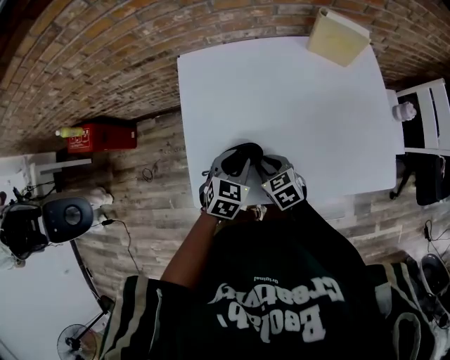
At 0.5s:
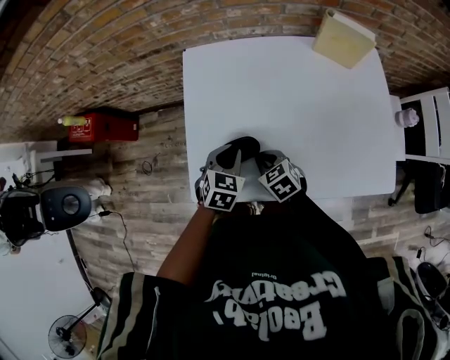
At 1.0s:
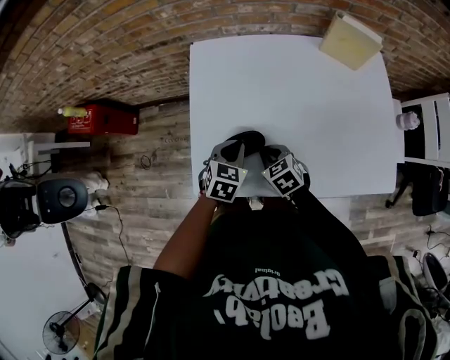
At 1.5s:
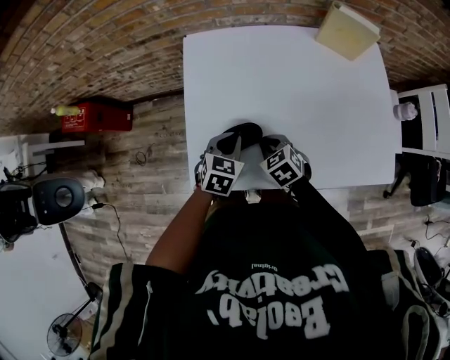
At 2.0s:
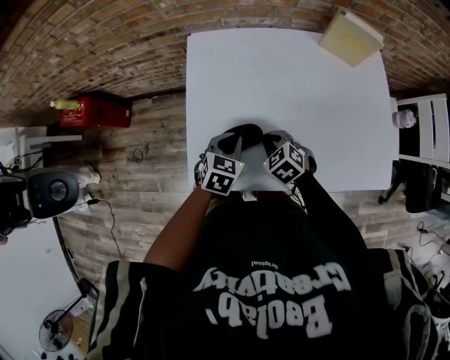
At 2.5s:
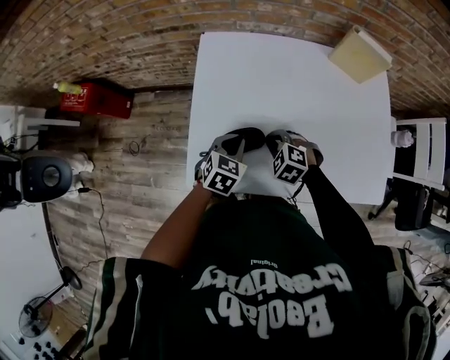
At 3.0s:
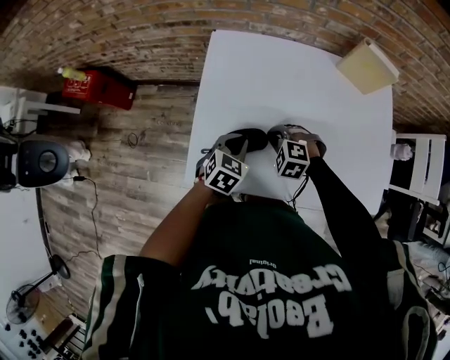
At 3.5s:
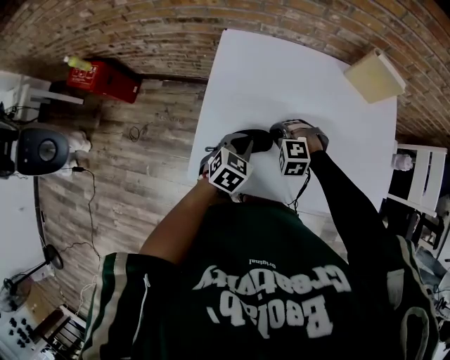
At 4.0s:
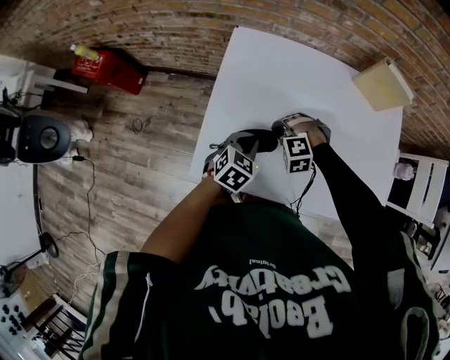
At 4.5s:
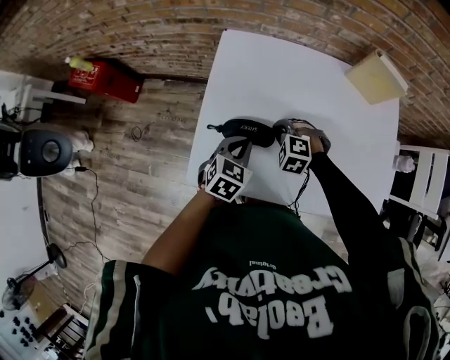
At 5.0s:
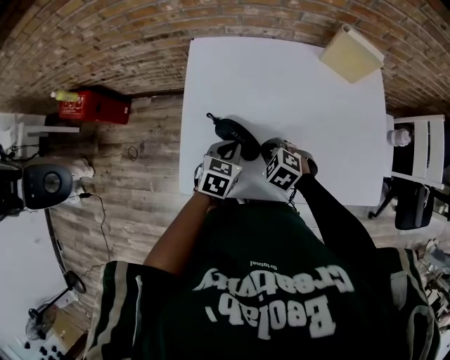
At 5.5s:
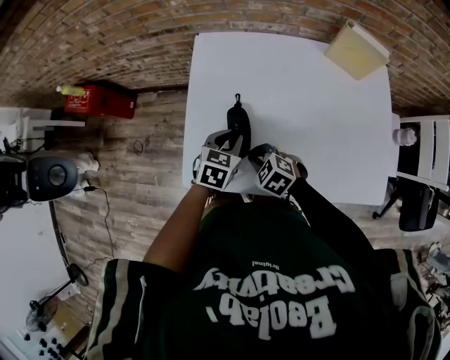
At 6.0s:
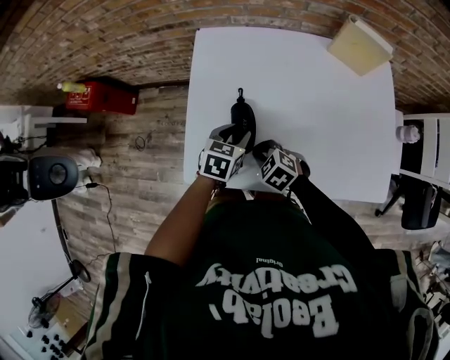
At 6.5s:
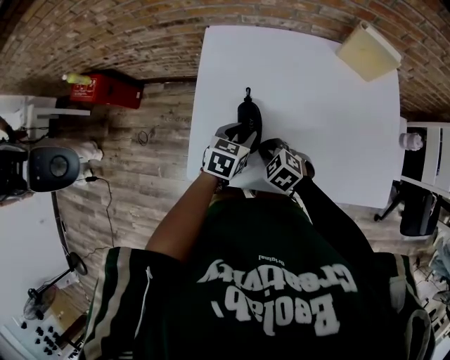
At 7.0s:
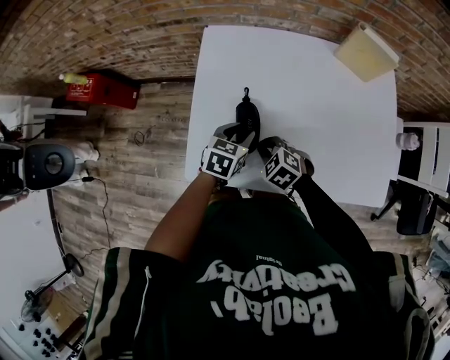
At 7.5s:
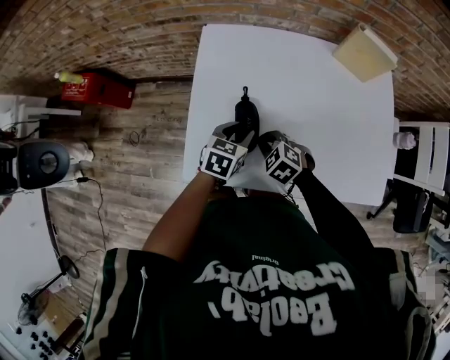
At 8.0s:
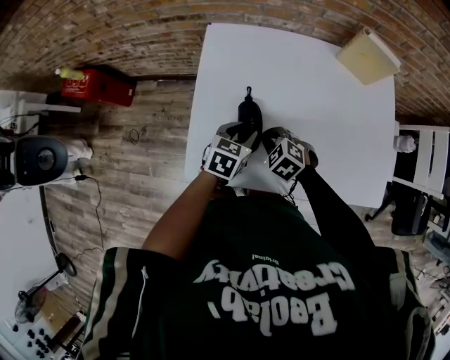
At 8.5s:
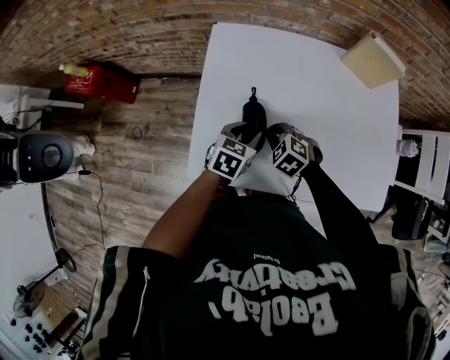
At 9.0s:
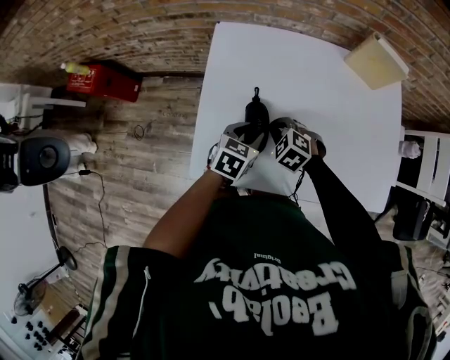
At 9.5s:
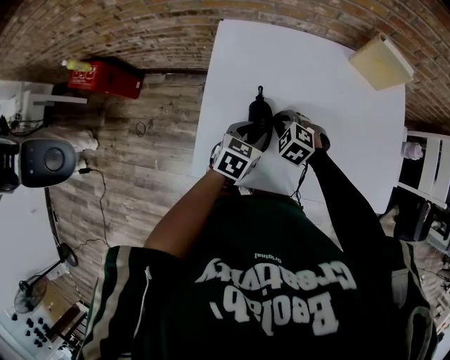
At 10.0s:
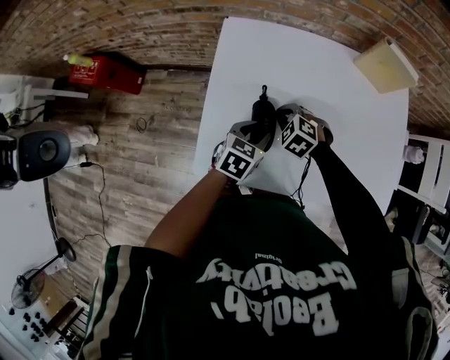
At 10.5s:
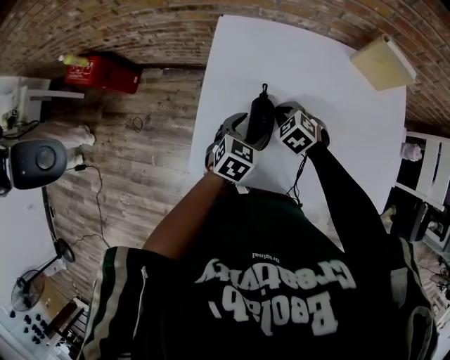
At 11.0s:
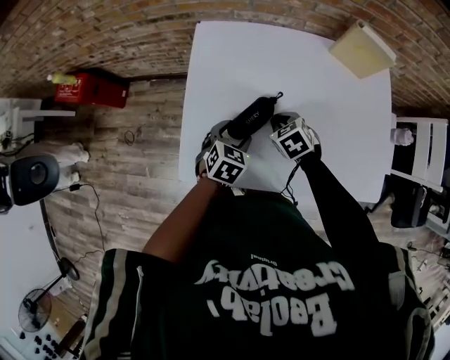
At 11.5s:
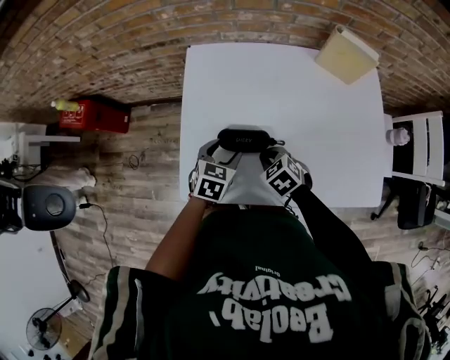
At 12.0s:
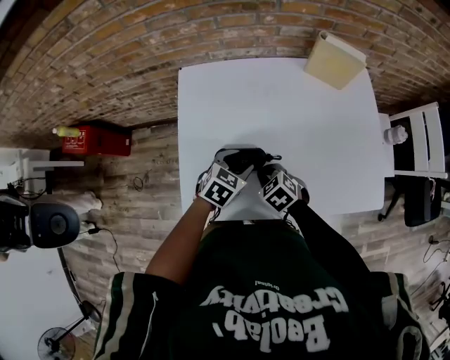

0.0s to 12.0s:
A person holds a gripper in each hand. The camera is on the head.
0.0s to 2.0s: The left gripper closes its fingers. The right gripper swivels roughly 30 degrees.
2.0s to 4.0s: The right gripper shifts roughly 5 cm forward, and twists approximately 70 degrees counterclockwise, seen from behind.
4.0s to 6.0s: The right gripper moves backward, about 10 cm, and rotates around the line of its fingers by roughly 60 degrees, clockwise from behind. Meanwhile the left gripper opens up.
6.0s to 8.0s: There are only small adjustments of the grippers.
8.0s to 10.0s: The right gripper heads forward, covering about 10 cm.
10.0s to 12.0s: The right gripper goes some 10 cm backward, and rotates roughly 30 degrees.

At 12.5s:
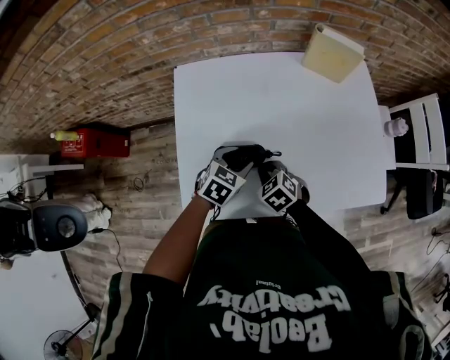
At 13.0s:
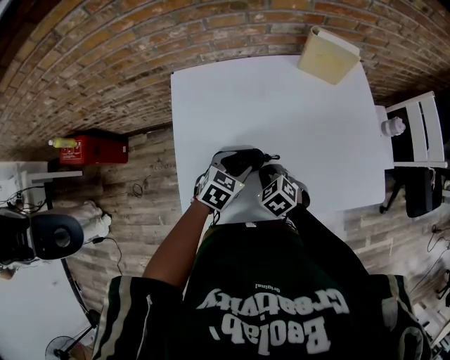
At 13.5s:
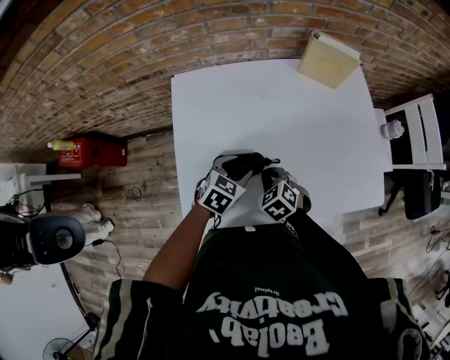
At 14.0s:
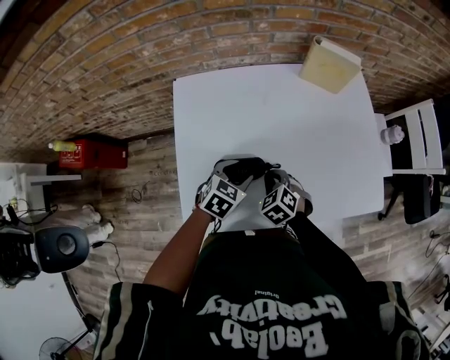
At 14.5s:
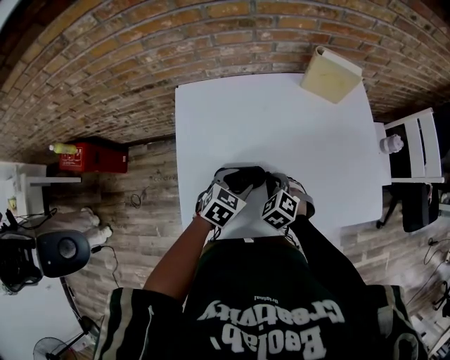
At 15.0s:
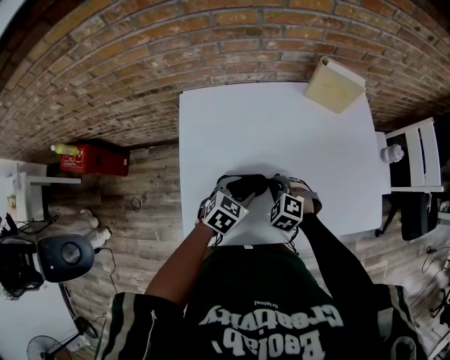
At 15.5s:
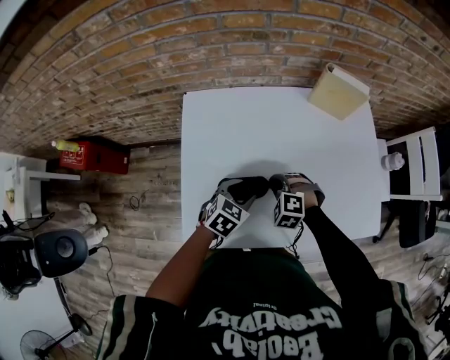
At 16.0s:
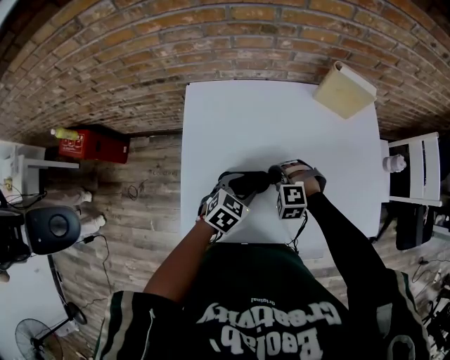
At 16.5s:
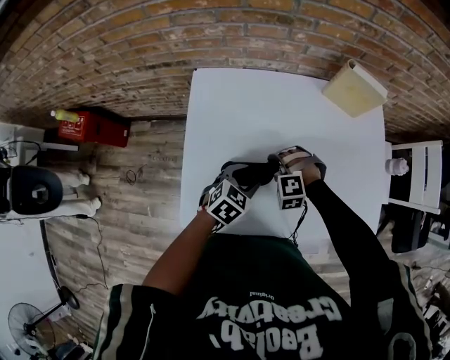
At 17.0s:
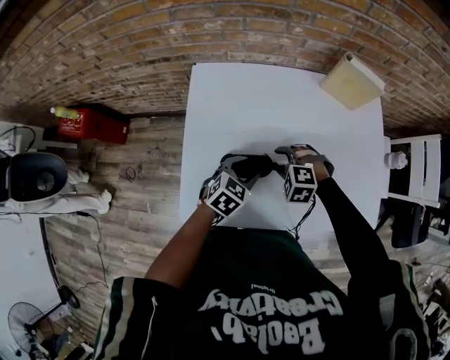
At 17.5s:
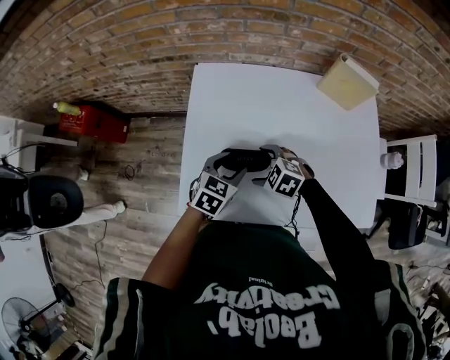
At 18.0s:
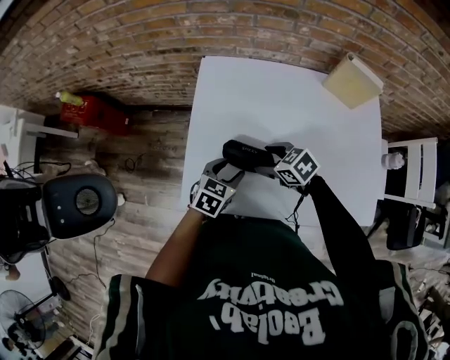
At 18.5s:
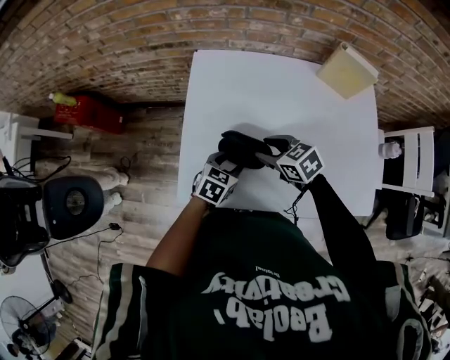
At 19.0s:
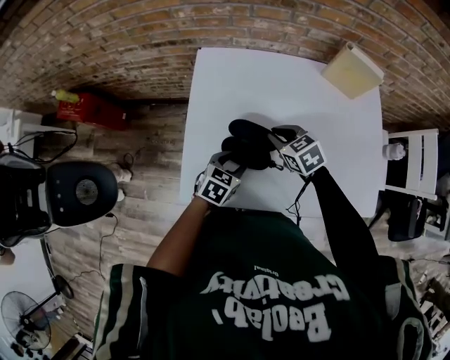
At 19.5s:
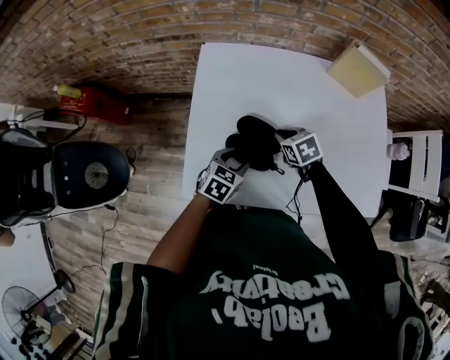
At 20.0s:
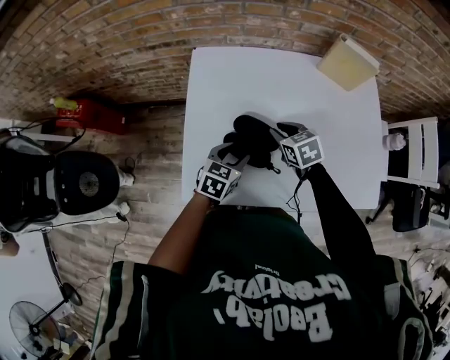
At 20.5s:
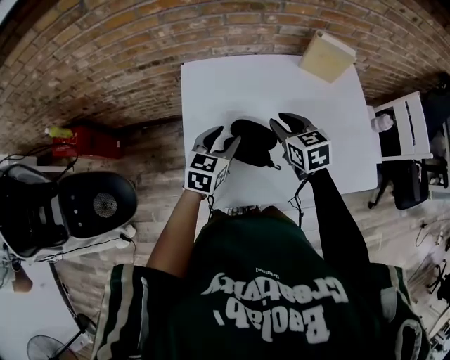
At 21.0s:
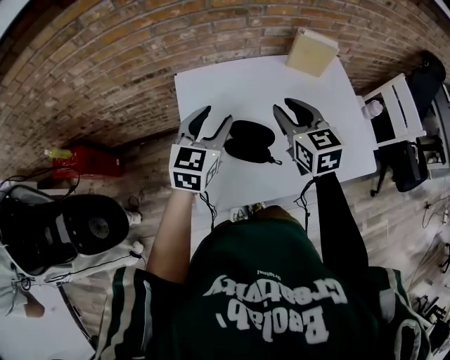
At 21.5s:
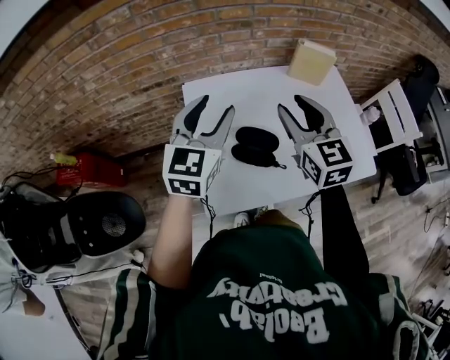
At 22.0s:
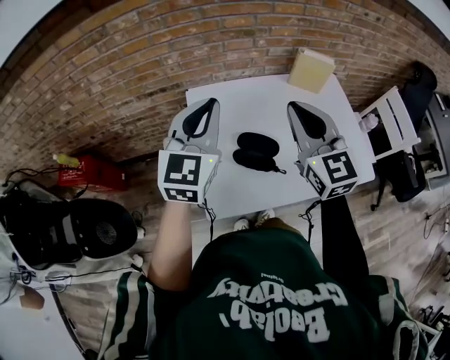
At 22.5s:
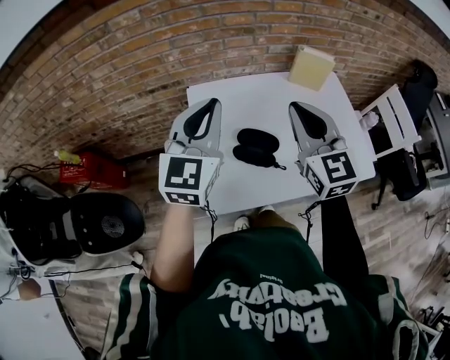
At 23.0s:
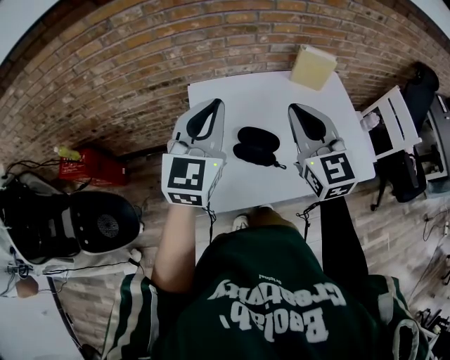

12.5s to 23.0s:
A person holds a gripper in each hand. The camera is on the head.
12.5s to 14.5s: The grippers make only small movements.
14.5s to 16.5s: The right gripper shifts by approximately 5 cm, and rotates around the line of its fingers by roughly 50 degrees, counterclockwise from behind.
16.5s to 19.0s: The right gripper is displaced upward by approximately 5 cm, twists some 70 degrees clockwise, seen from behind, and opens, then closes again. Meanwhile the left gripper shifts by approximately 5 cm.
19.0s to 21.0s: The two grippers go approximately 20 cm upward. The left gripper swivels some 30 degrees. Meanwhile the right gripper rotates roughly 40 degrees.
21.0s to 23.0s: Both grippers travel together upward and backward, roughly 15 cm. The right gripper rotates some 20 degrees, and closes up. The left gripper closes its fingers.

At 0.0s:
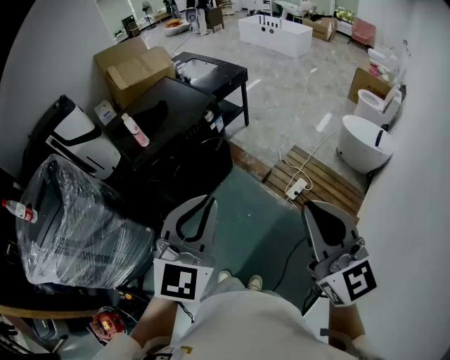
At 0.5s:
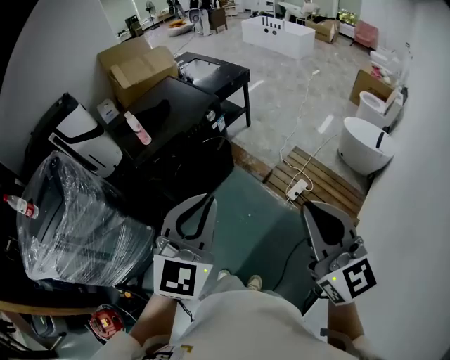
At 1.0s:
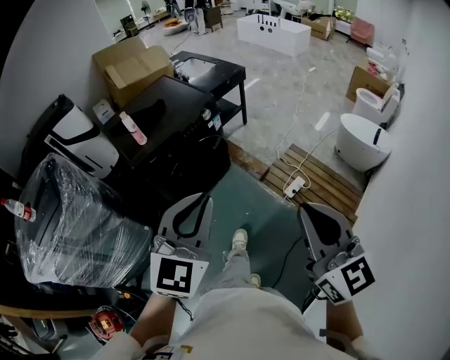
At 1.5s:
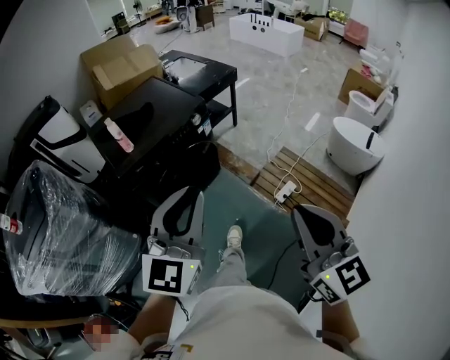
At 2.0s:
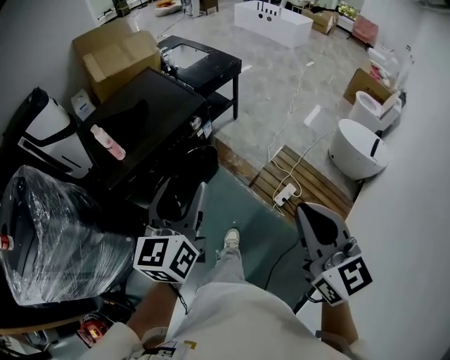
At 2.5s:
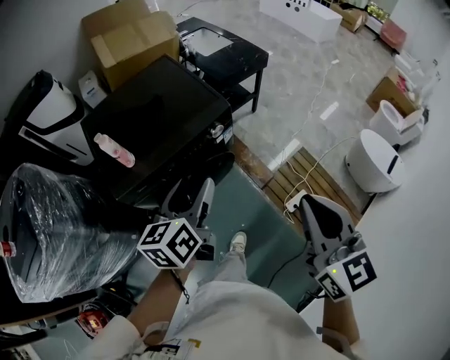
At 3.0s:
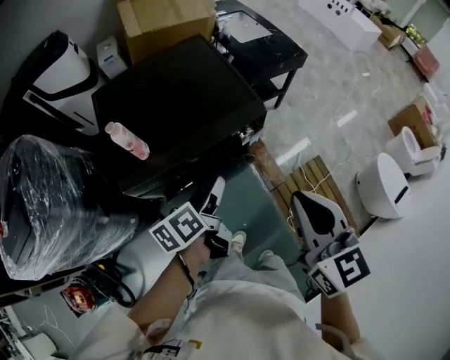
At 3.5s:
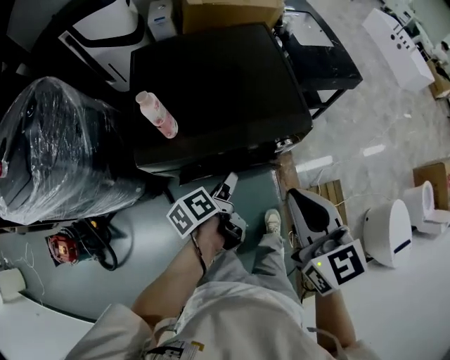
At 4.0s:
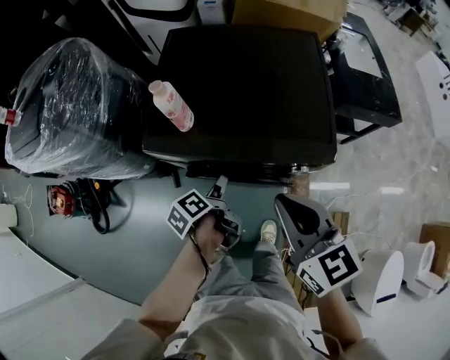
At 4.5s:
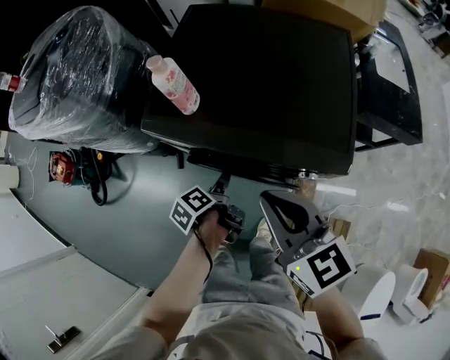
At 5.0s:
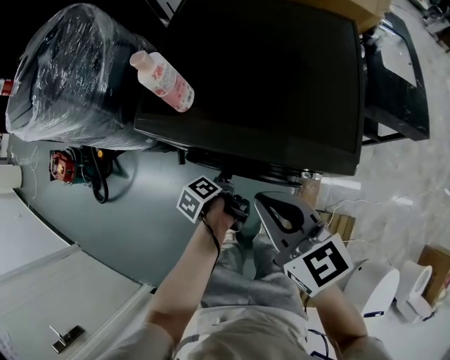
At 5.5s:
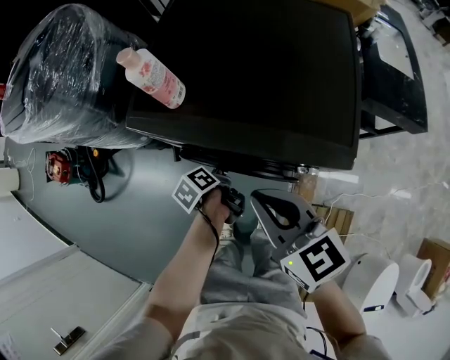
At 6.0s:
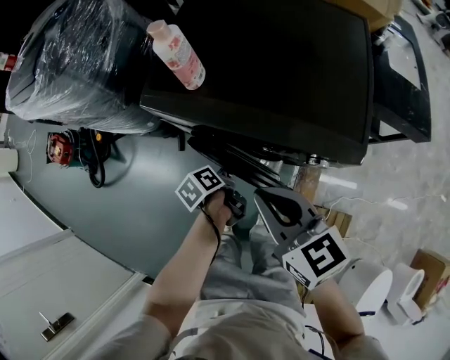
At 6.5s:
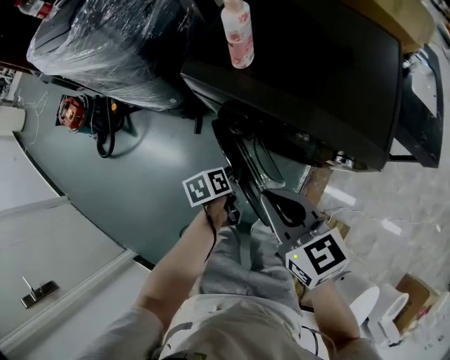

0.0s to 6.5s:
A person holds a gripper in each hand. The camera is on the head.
0.0s to 2.0s: The two grippers go about 20 cm forward. The left gripper rolls counterclockwise, seen from behind, by about 40 degrees, and opens up.
2.0s to 4.5s: The right gripper shifts by roughly 50 cm, and changes its angle by some 70 degrees, while the left gripper goes some 40 cm downward, and tilts its fingers about 40 degrees downward.
4.5s to 6.5s: Both grippers move to the left, downward and backward, roughly 10 cm. The left gripper rotates some 20 degrees, and closes up.
